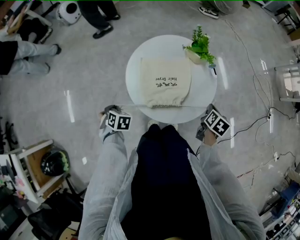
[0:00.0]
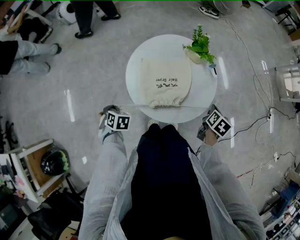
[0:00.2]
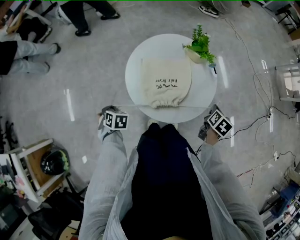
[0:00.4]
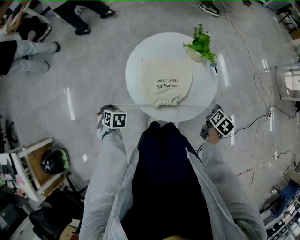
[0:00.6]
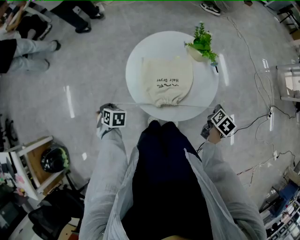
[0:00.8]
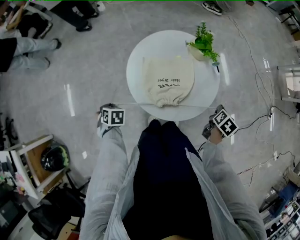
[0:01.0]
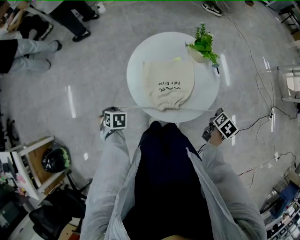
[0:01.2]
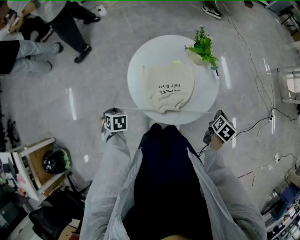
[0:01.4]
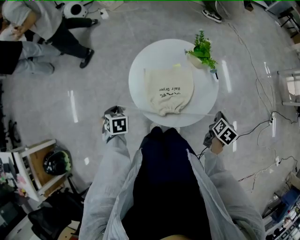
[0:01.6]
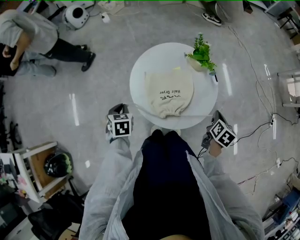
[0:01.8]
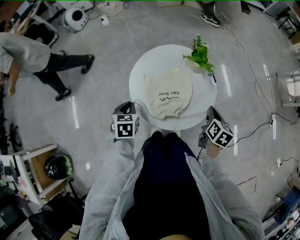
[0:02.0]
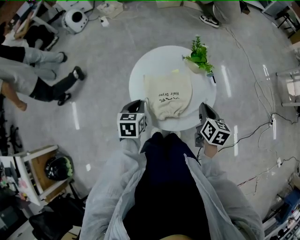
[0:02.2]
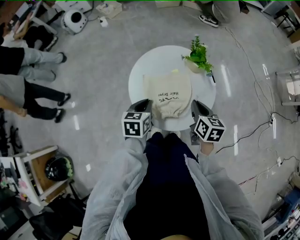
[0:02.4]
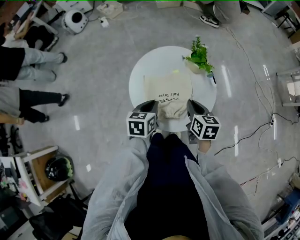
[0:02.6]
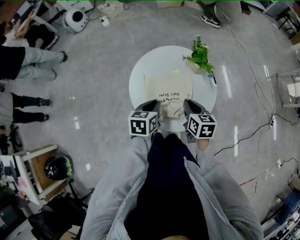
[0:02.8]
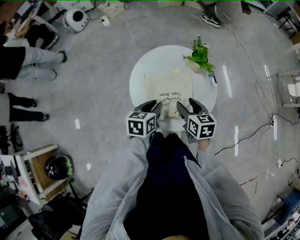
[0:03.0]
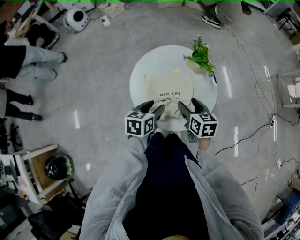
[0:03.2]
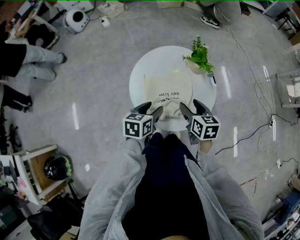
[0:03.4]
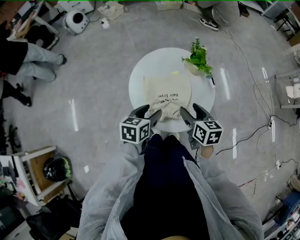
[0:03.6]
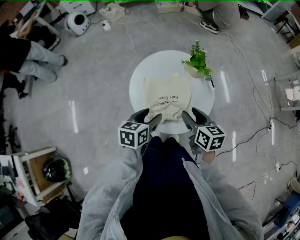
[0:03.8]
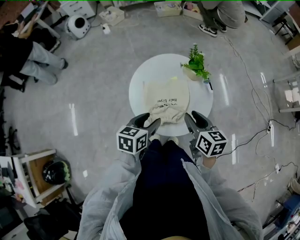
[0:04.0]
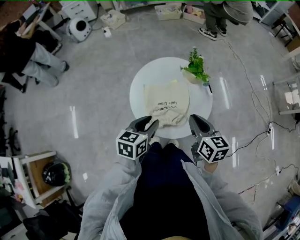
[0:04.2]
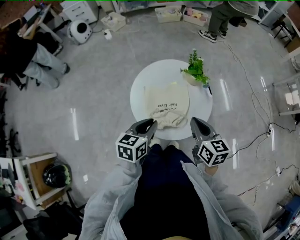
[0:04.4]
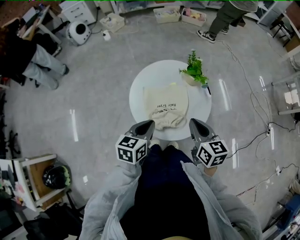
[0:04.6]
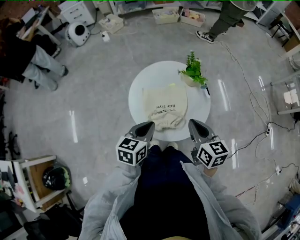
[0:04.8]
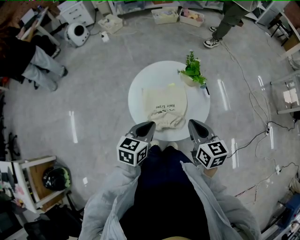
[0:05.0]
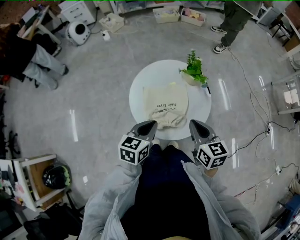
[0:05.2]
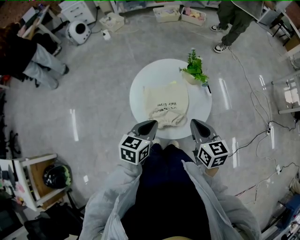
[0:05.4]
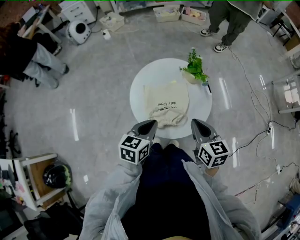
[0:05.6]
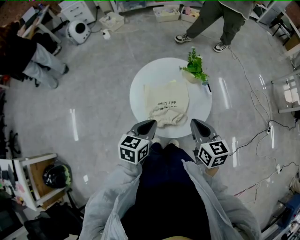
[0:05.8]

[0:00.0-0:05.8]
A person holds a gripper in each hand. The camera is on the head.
0:00.0 to 0:01.4: The right gripper ends up approximately 5 cm from where it was.
0:01.4 to 0:02.8: The right gripper heads to the left, covering about 20 cm, and rotates about 40 degrees, while the left gripper travels to the right and upward by about 25 cm, and changes its angle by roughly 40 degrees.
0:02.8 to 0:04.4: Both grippers travel together upward and backward, approximately 10 cm. The right gripper opens, then closes again; the left gripper opens, then closes once more.
0:04.4 to 0:05.8: The grippers stay close to where they were, moving slightly.

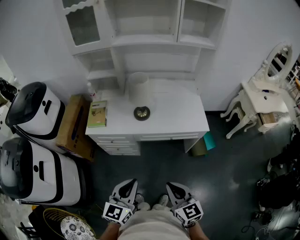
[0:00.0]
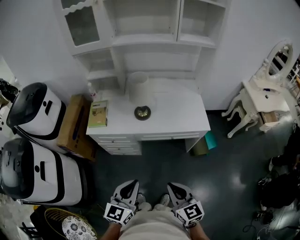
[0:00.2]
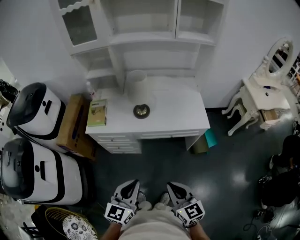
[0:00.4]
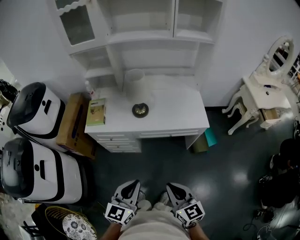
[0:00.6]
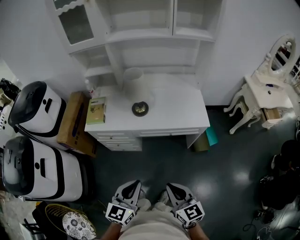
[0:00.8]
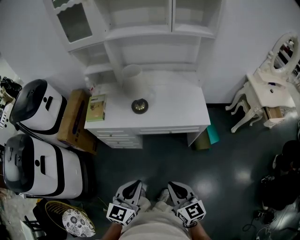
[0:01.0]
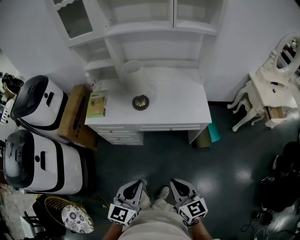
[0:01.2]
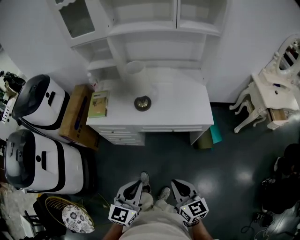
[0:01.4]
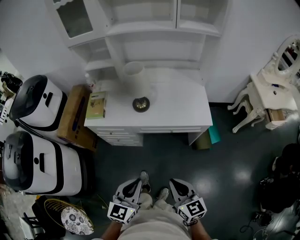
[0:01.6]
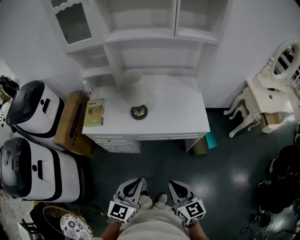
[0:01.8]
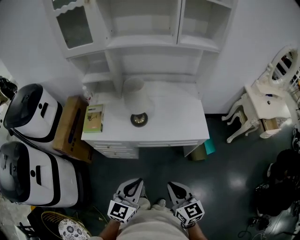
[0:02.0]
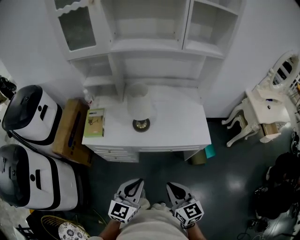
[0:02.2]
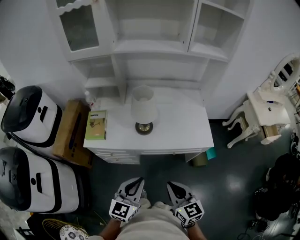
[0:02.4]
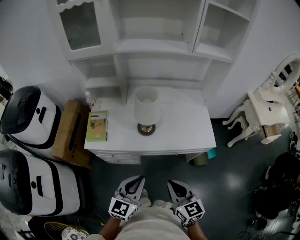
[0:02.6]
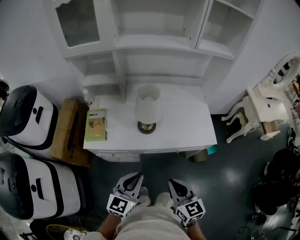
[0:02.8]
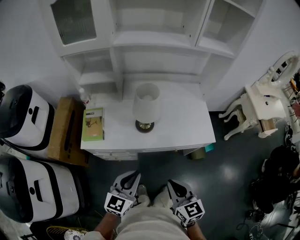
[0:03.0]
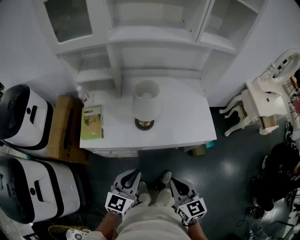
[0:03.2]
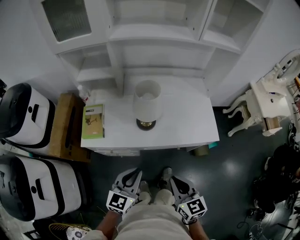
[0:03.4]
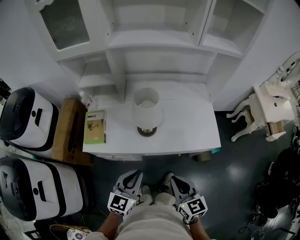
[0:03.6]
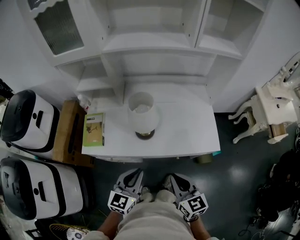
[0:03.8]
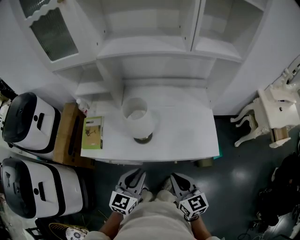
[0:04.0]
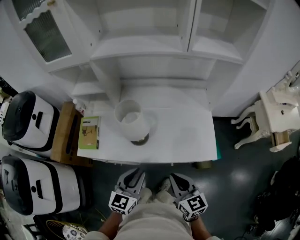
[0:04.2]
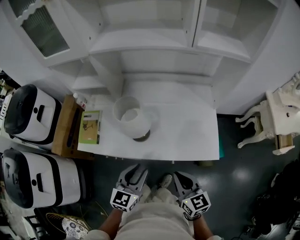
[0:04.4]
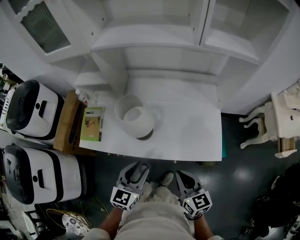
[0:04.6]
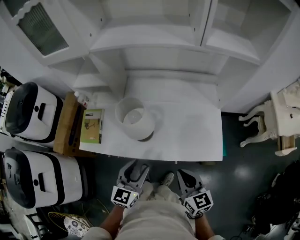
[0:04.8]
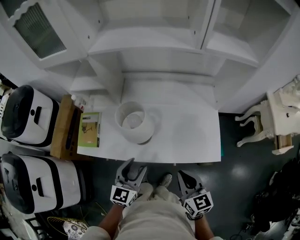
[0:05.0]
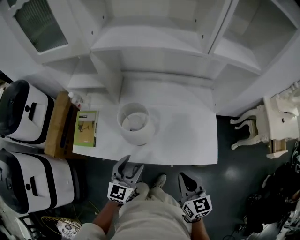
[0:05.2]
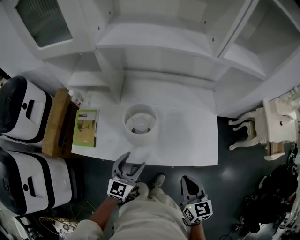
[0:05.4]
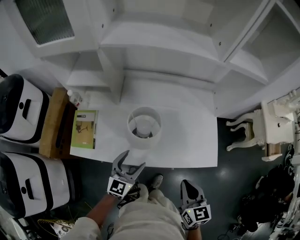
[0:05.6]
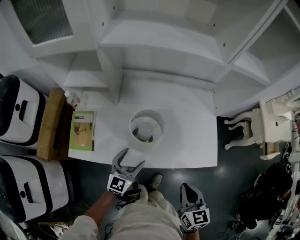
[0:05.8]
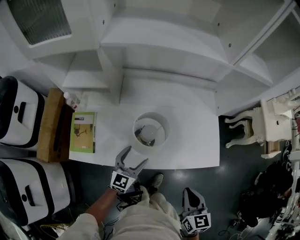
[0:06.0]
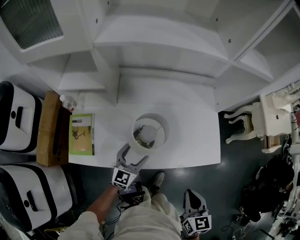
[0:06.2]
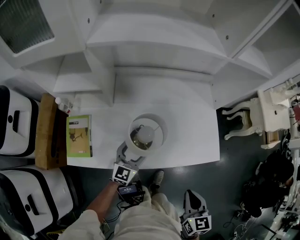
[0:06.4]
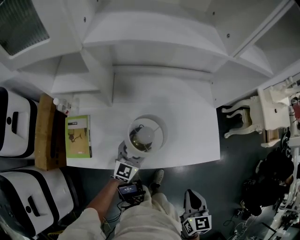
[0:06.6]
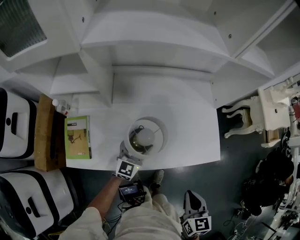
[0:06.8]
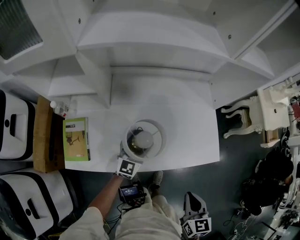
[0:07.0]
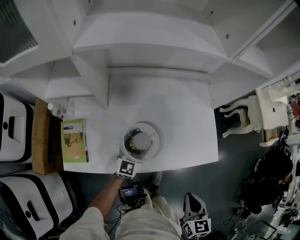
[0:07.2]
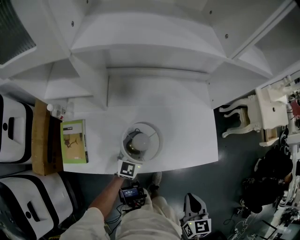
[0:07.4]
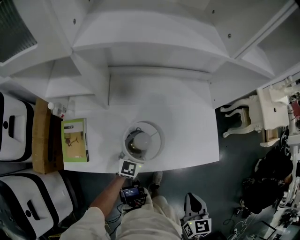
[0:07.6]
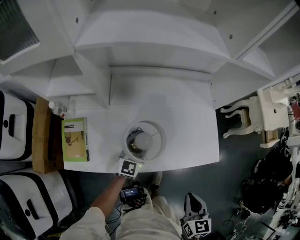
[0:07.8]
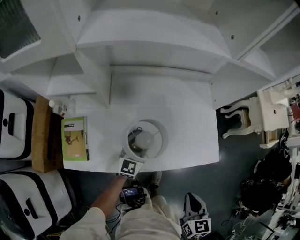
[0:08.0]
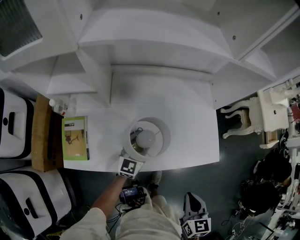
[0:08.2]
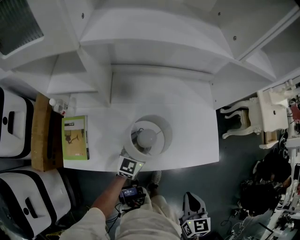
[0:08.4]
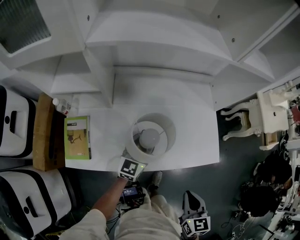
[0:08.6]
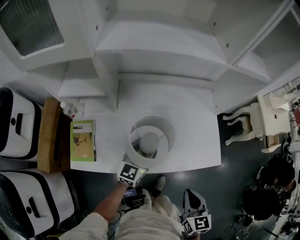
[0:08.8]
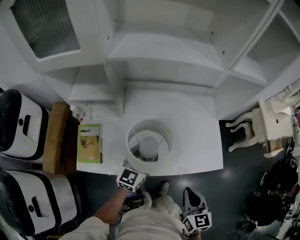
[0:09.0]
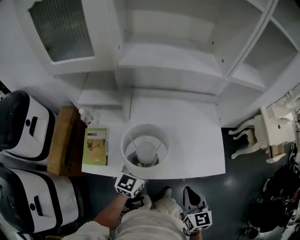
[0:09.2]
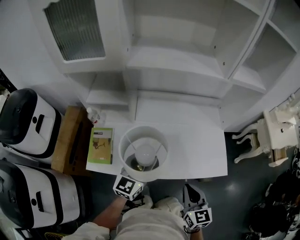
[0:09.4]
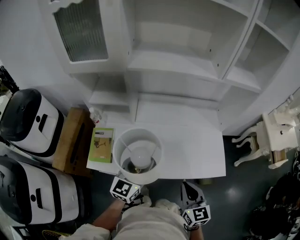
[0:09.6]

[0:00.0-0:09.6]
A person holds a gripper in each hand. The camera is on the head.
0:00.0 to 0:01.6: Both grippers move to the right, about 5 cm.
0:01.6 to 0:03.2: Both grippers travel together forward and to the left, roughly 20 cm.
0:03.2 to 0:04.8: Both grippers move forward and to the right, approximately 20 cm. The left gripper opens its fingers.
0:04.8 to 0:06.4: The right gripper changes its angle by some 30 degrees. Meanwhile the left gripper goes roughly 20 cm forward, downward and to the left, and opens up.
0:06.4 to 0:08.0: The left gripper travels forward by some 5 cm, and closes.
0:08.0 to 0:09.6: The left gripper is displaced upward and backward by some 25 cm; the right gripper shifts roughly 10 cm to the left and upward, and rotates some 30 degrees.

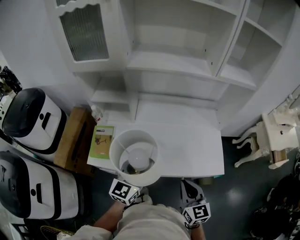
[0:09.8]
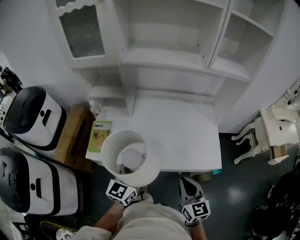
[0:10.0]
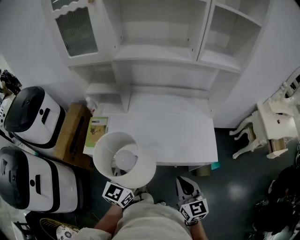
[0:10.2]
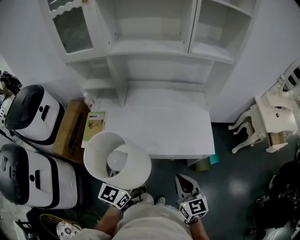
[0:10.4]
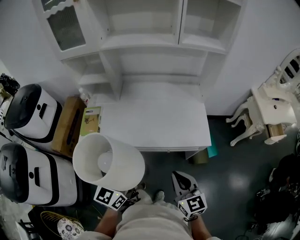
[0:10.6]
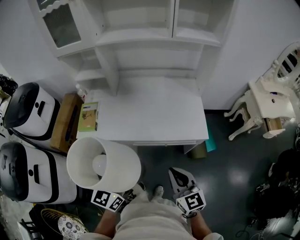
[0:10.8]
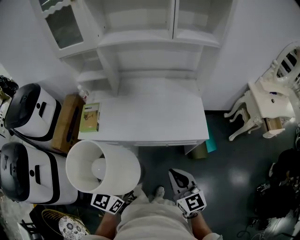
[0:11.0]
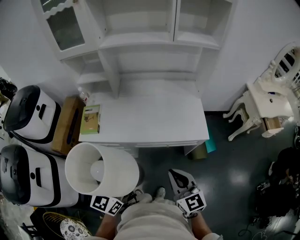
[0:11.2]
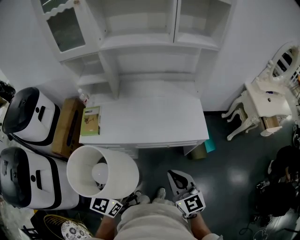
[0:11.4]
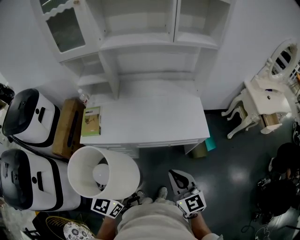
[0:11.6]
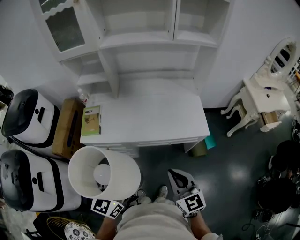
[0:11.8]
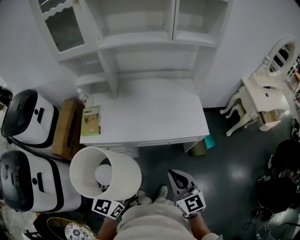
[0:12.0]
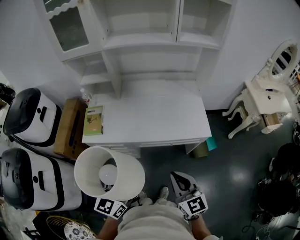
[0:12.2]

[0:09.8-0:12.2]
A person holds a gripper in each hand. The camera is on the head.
0:09.8 to 0:11.0: The right gripper goes roughly 20 cm backward and to the right. The left gripper travels backward by some 25 cm.
0:11.0 to 0:12.2: The right gripper ends up roughly 5 cm from where it was.

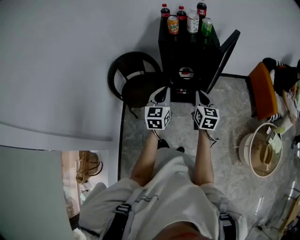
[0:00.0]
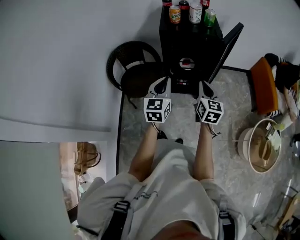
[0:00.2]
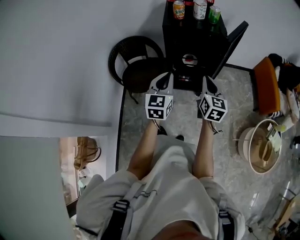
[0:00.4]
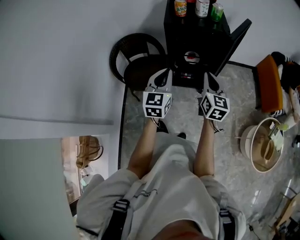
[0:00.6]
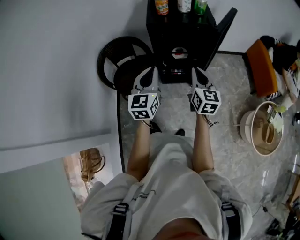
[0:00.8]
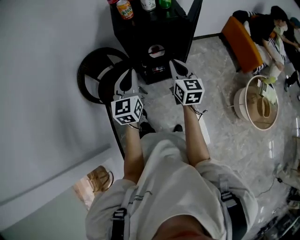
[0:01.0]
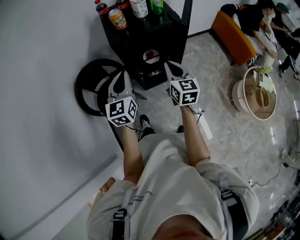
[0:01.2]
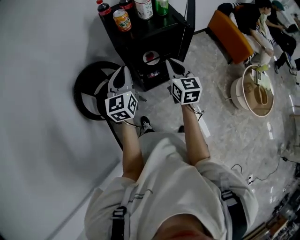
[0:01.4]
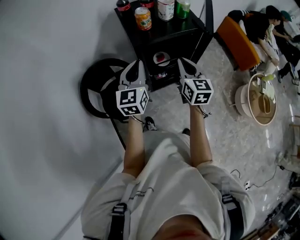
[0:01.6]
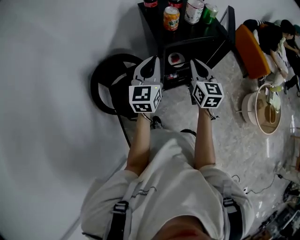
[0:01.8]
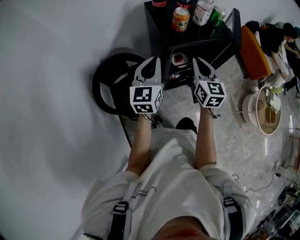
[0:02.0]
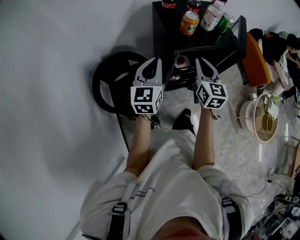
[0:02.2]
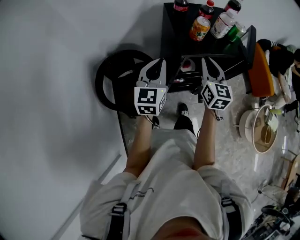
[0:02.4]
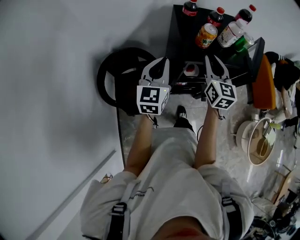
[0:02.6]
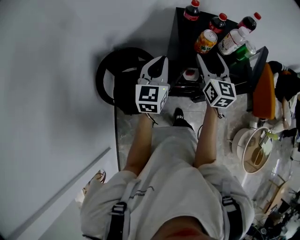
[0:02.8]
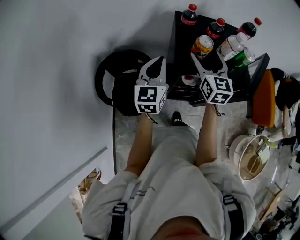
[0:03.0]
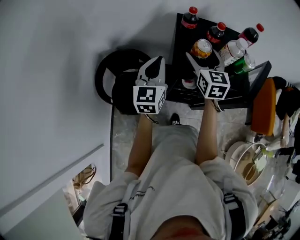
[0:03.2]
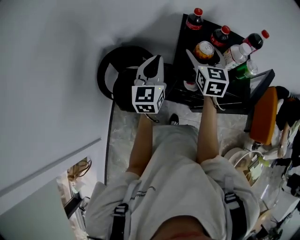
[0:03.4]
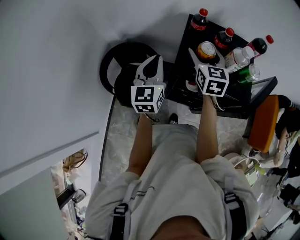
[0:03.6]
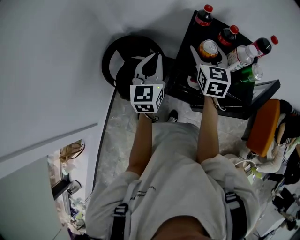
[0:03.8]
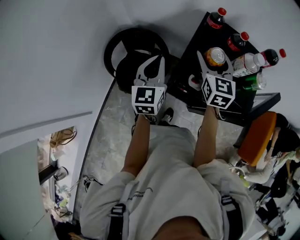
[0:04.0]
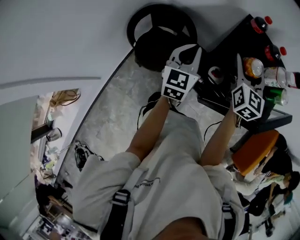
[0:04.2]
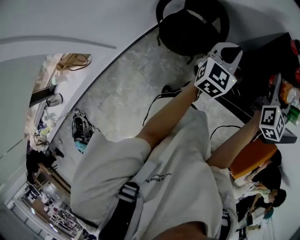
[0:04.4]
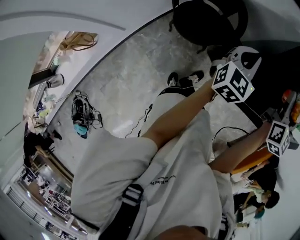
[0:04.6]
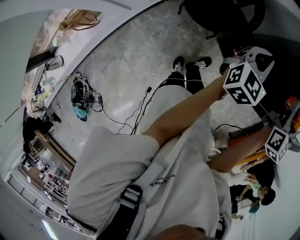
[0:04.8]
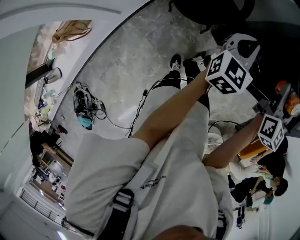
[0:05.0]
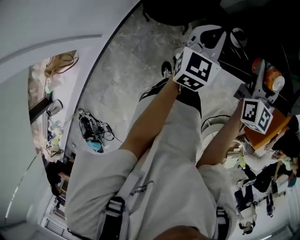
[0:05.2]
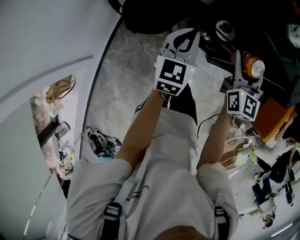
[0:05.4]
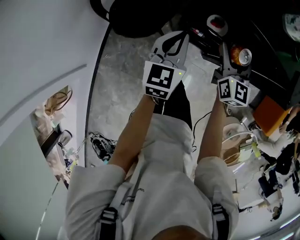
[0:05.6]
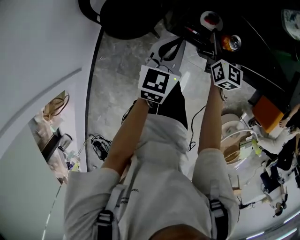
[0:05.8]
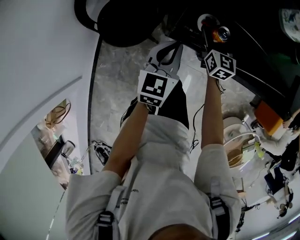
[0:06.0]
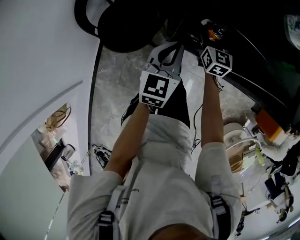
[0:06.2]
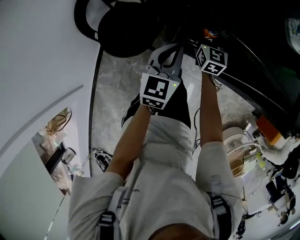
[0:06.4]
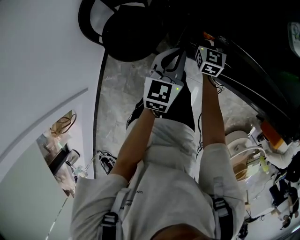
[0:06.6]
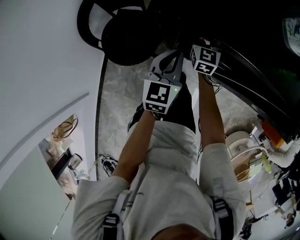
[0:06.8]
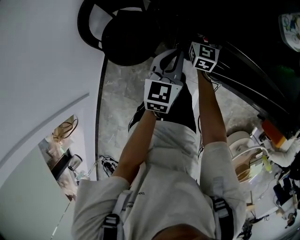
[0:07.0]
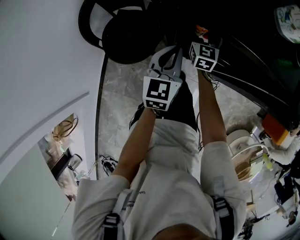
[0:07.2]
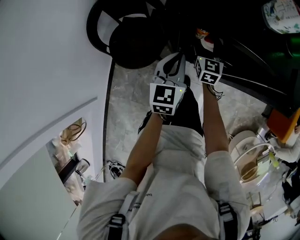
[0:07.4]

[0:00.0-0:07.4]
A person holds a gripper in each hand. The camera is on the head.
0:00.0 to 0:01.4: The two grippers go some 20 cm forward.
0:01.4 to 0:03.0: The left gripper moves forward and to the left, about 20 cm. The right gripper goes some 25 cm forward and to the left, rotates about 20 degrees, and opens its fingers.
0:03.0 to 0:04.4: The right gripper moves about 5 cm, while the left gripper travels backward by roughly 10 cm, and turns by about 20 degrees.
0:04.4 to 0:06.0: The left gripper heads downward, covering approximately 20 cm, and turns by roughly 20 degrees. The right gripper is displaced downward by approximately 35 cm.
